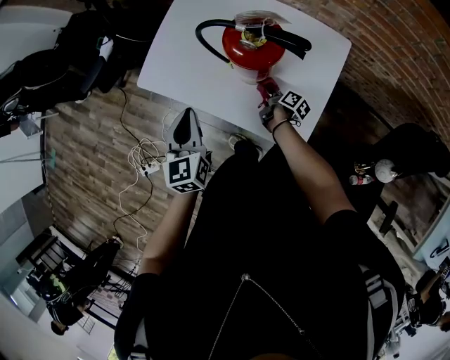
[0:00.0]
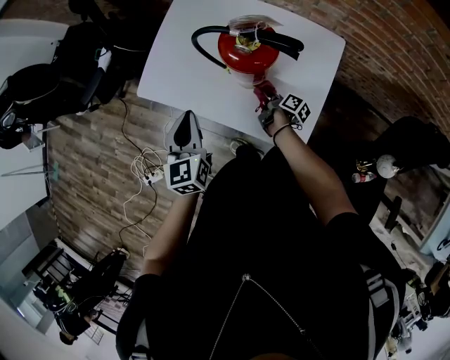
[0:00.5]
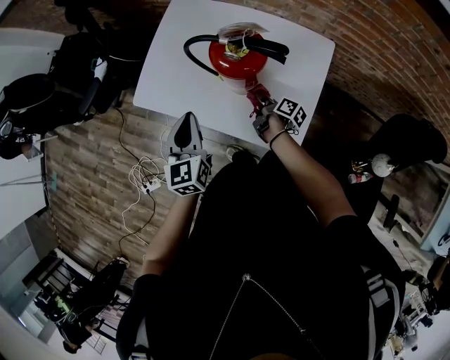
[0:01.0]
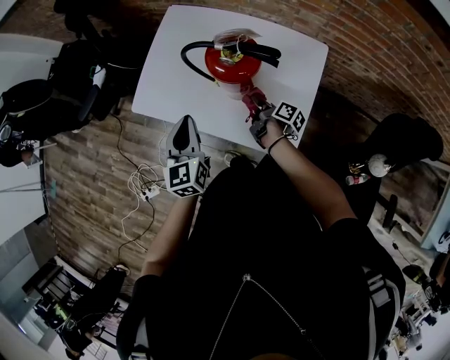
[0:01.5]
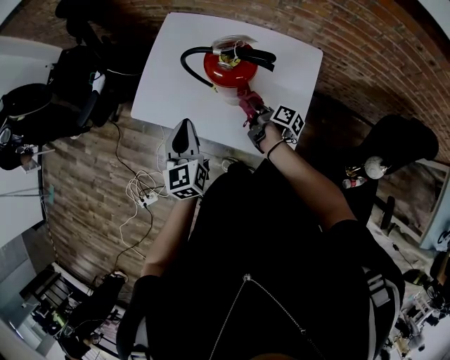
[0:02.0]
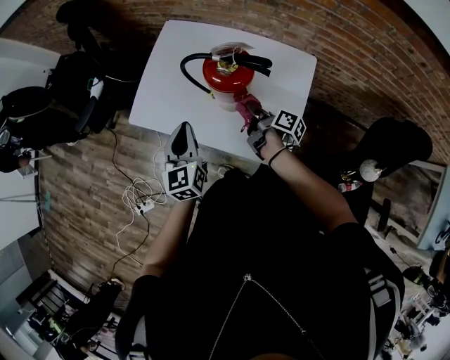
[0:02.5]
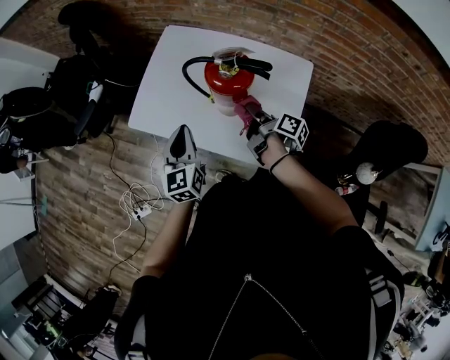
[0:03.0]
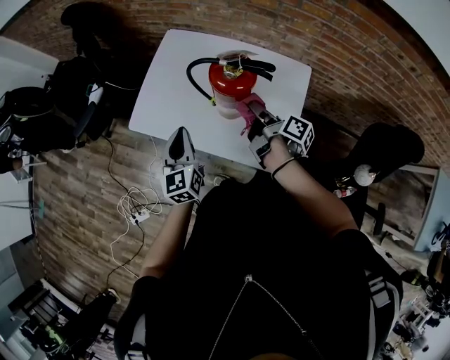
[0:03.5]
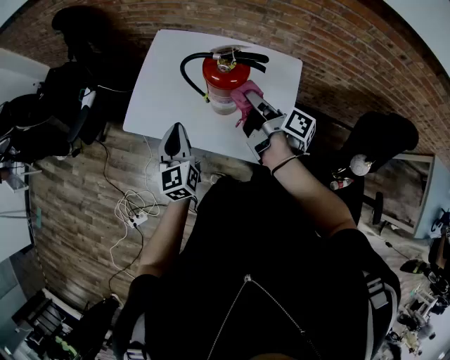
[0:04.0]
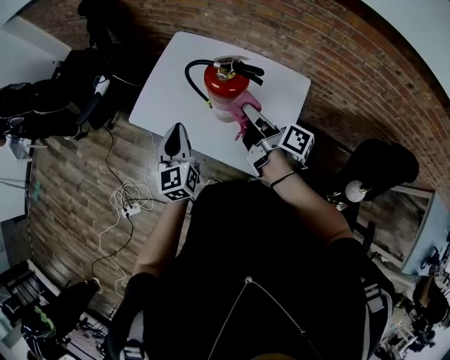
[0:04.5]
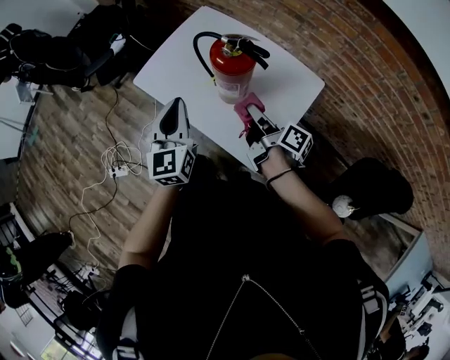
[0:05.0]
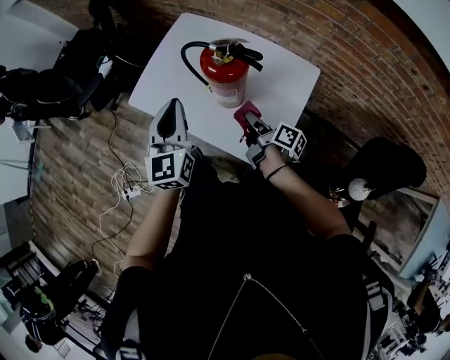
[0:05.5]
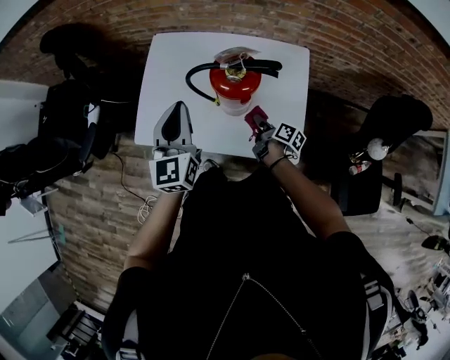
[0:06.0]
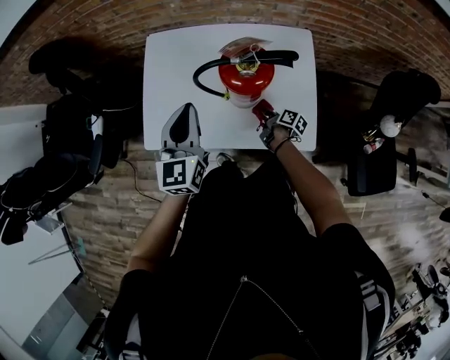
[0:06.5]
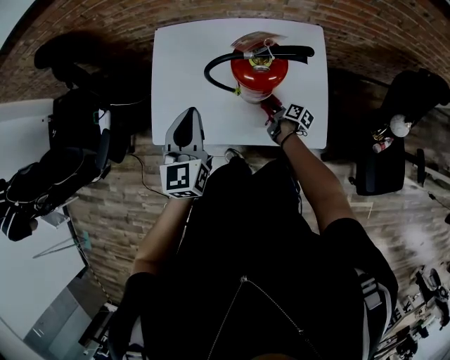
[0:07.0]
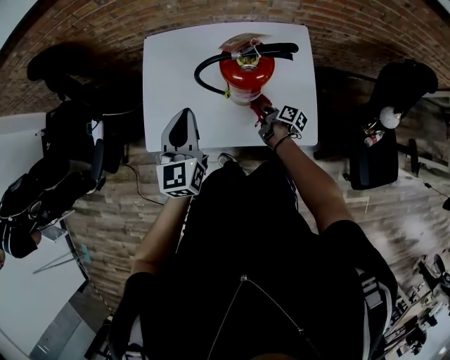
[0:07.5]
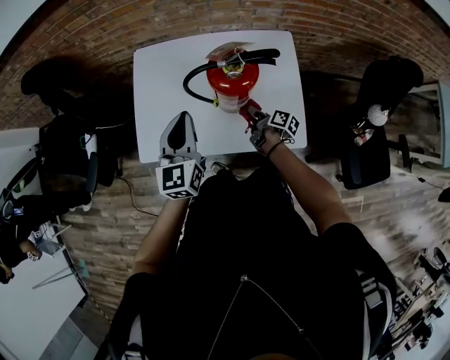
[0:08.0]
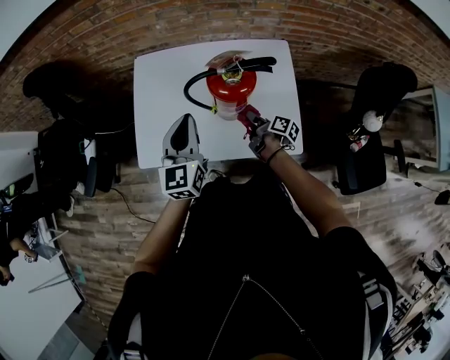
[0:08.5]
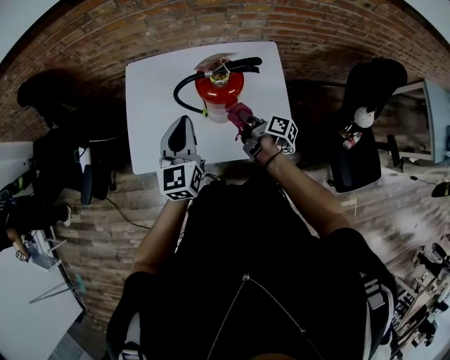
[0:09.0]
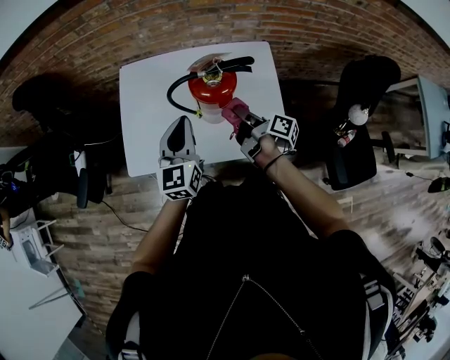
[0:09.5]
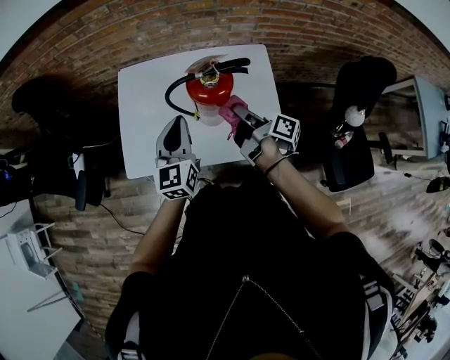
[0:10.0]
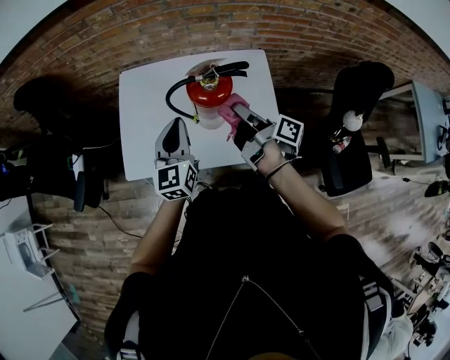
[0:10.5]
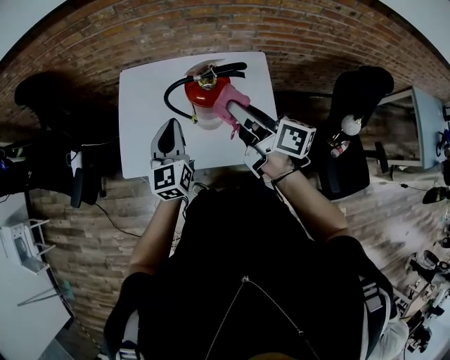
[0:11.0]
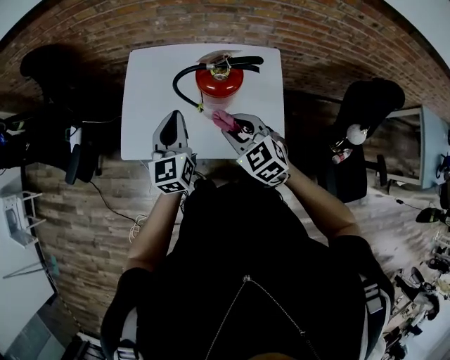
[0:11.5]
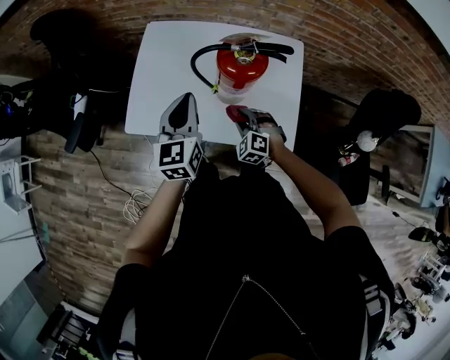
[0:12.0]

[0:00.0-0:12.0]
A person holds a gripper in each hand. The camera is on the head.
0:04.0 to 0:06.0: The left gripper ends up about 10 cm from where it was.

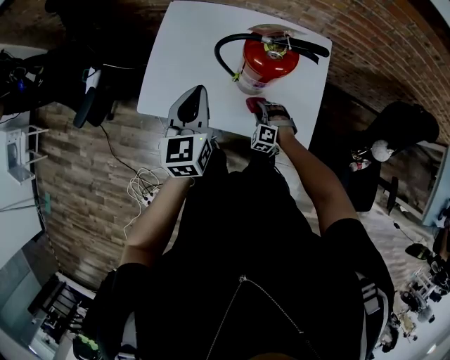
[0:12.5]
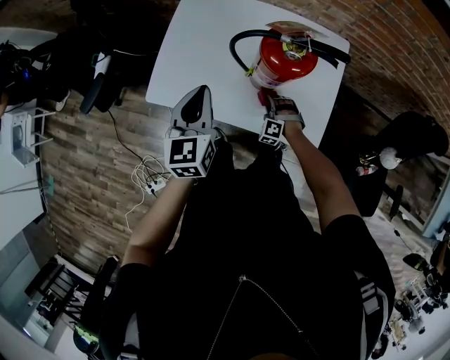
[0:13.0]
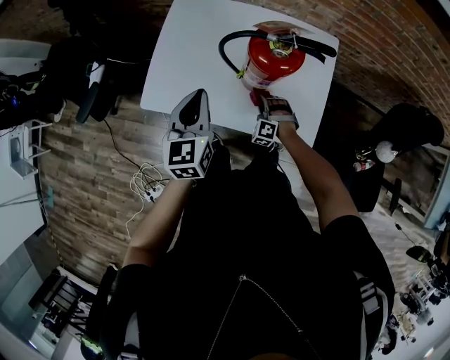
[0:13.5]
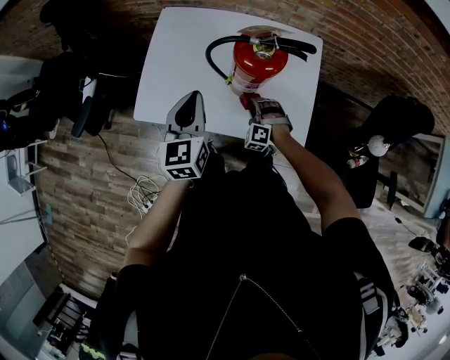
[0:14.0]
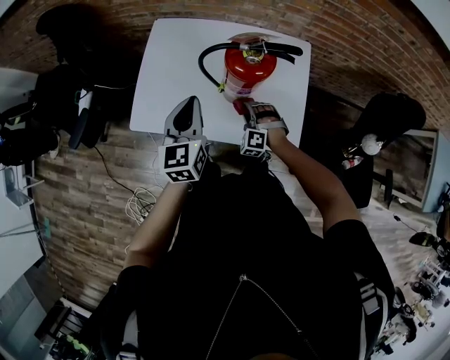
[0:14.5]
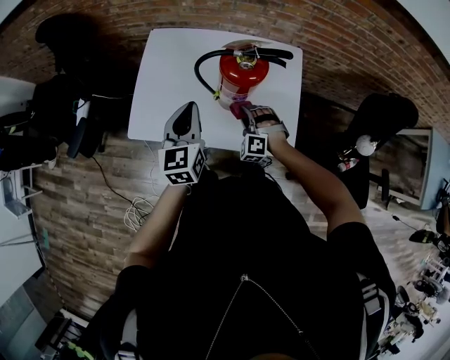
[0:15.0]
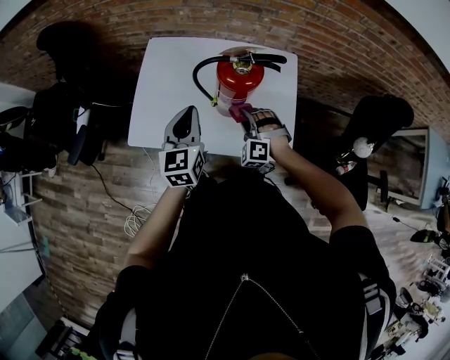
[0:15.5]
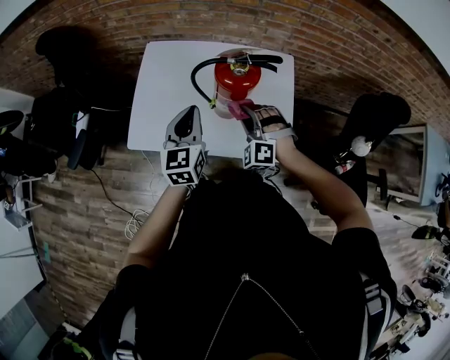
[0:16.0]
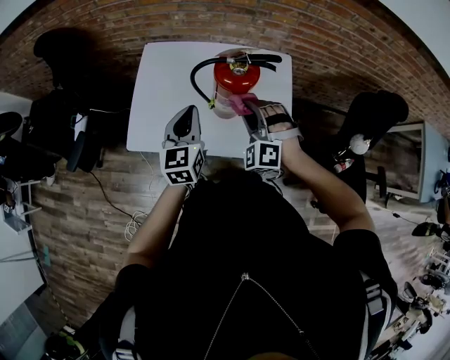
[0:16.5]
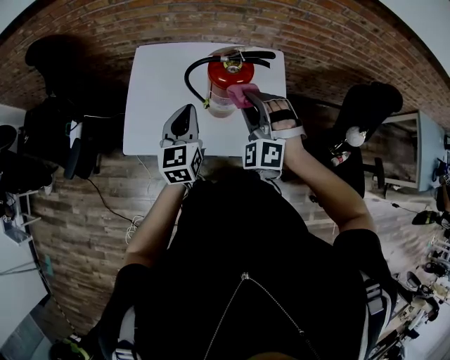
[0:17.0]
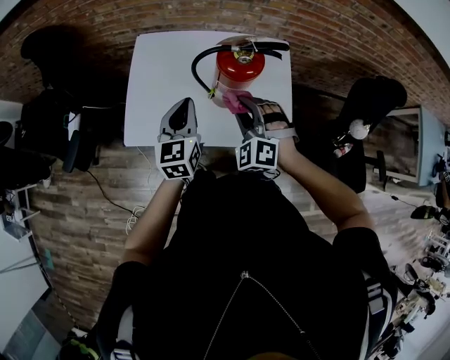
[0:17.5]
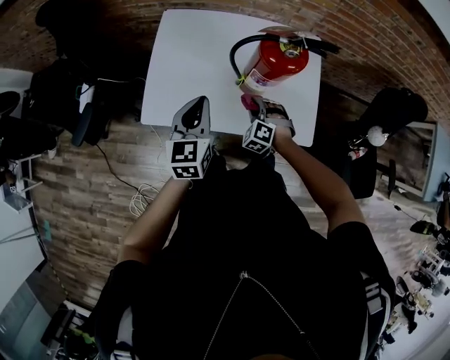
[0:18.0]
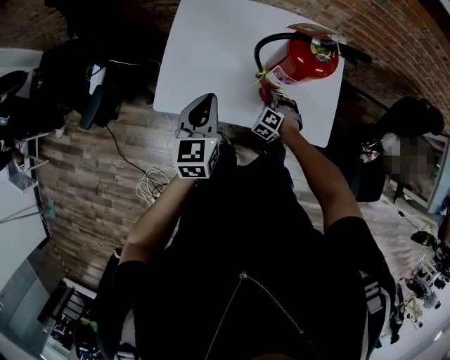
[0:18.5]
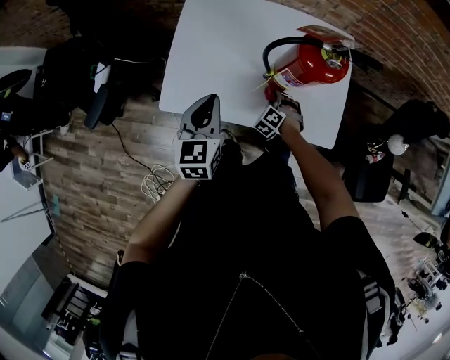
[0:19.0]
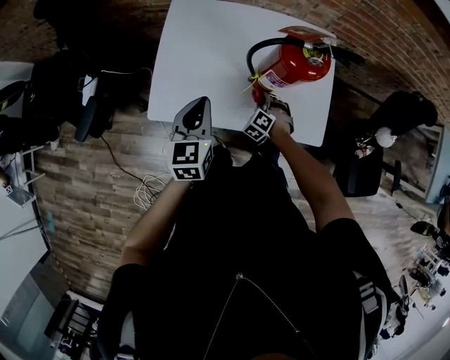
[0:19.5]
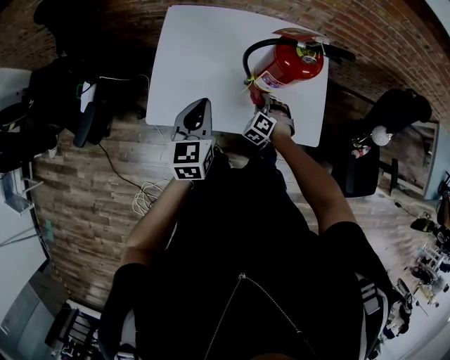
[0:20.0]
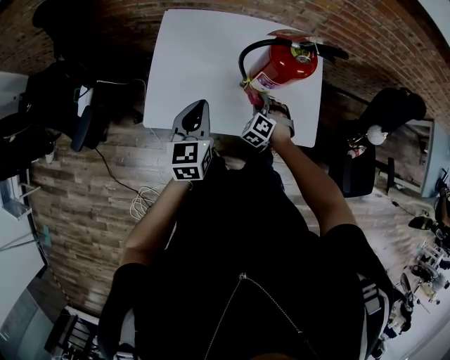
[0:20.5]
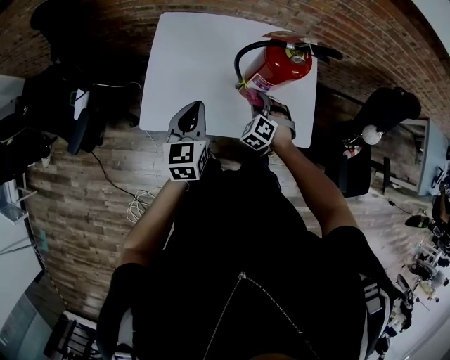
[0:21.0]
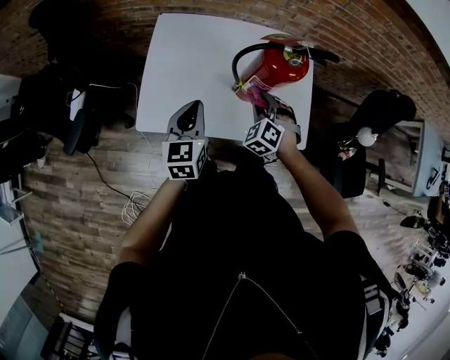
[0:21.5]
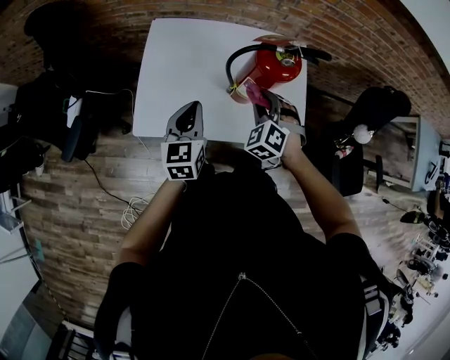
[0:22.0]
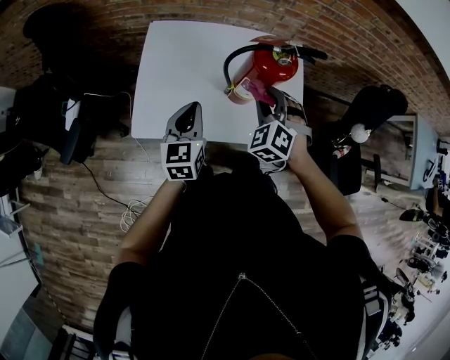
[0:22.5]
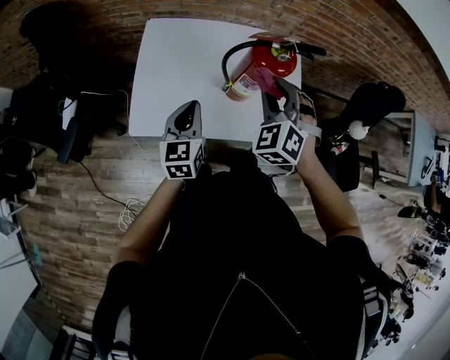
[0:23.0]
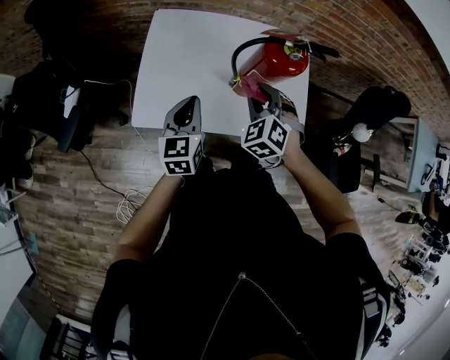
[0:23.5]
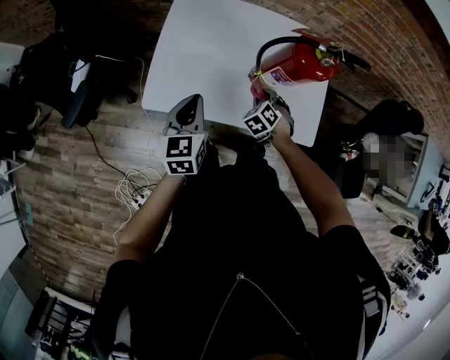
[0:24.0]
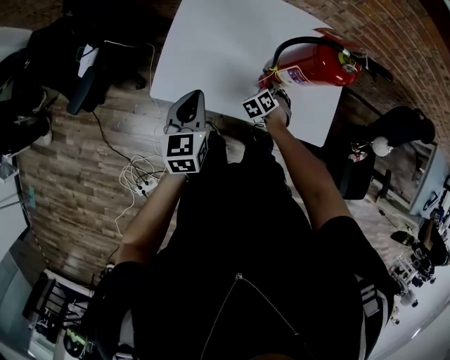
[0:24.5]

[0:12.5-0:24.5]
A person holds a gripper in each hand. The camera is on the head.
0:16.5 to 0:18.5: The left gripper ends up some 15 cm from where it was.
0:22.5 to 0:24.5: The left gripper changes place by about 10 cm.

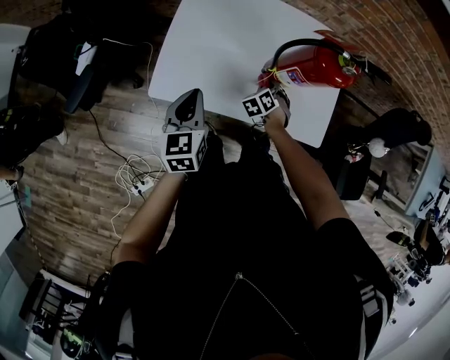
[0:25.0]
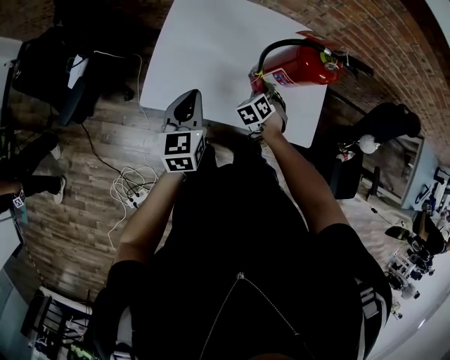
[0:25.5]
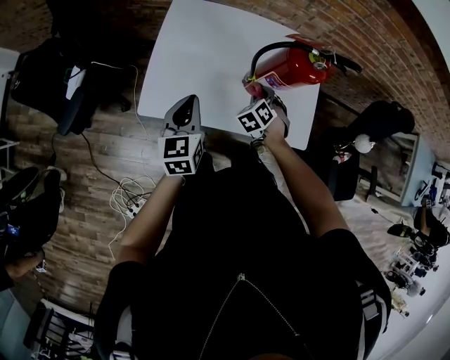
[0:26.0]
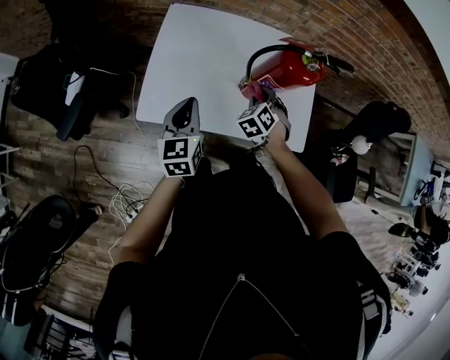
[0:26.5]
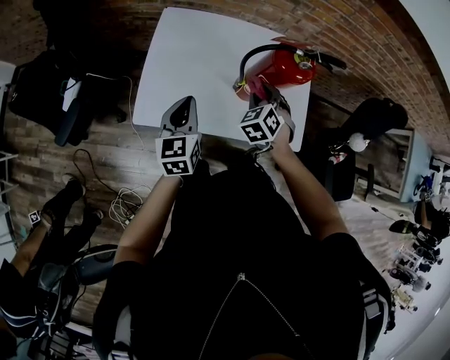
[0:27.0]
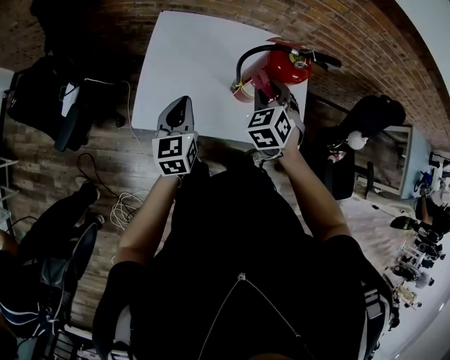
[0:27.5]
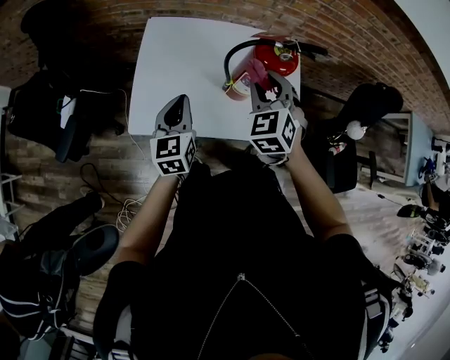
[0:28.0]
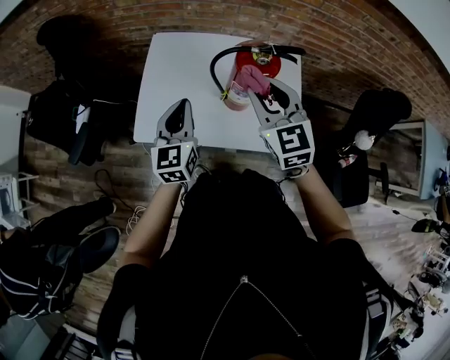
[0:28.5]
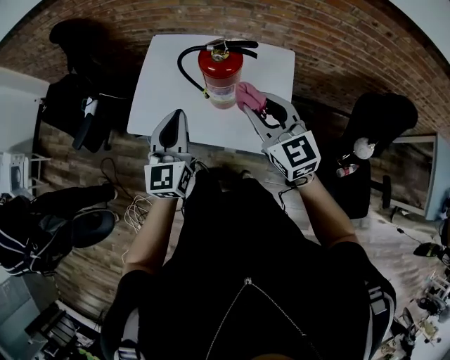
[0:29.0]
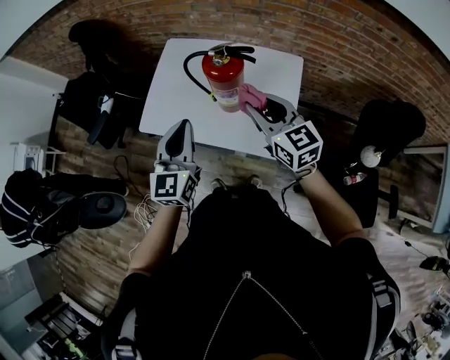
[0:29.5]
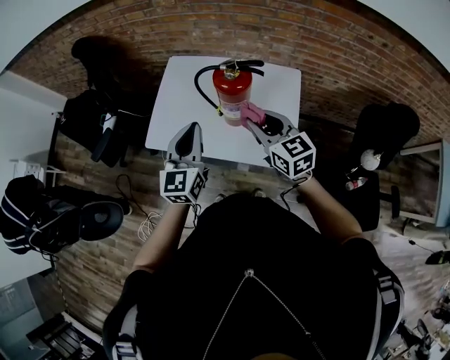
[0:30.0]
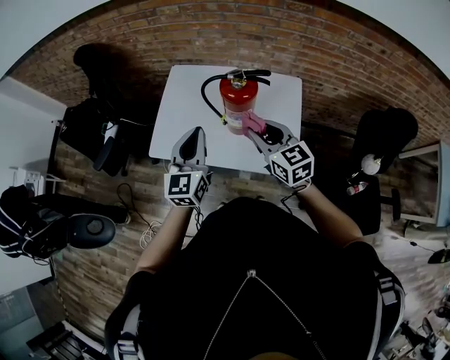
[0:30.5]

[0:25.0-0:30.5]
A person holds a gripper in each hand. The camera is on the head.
0:25.0 to 0:27.0: The left gripper moves about 5 cm.
0:27.0 to 0:28.5: The left gripper shifts about 10 cm upward.
0:28.5 to 0:30.5: The left gripper changes place by roughly 15 cm.
